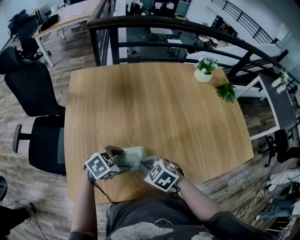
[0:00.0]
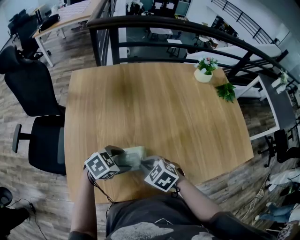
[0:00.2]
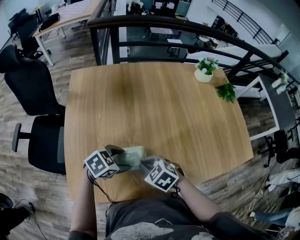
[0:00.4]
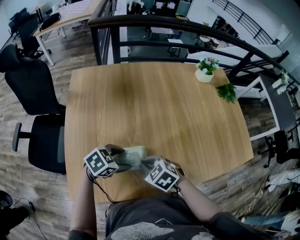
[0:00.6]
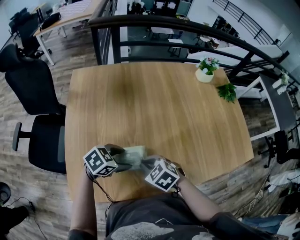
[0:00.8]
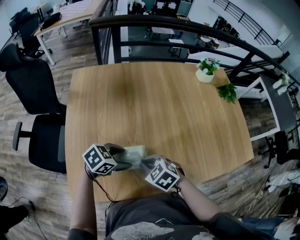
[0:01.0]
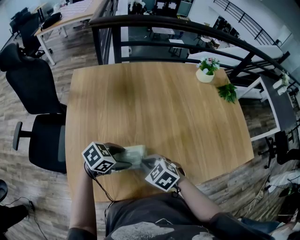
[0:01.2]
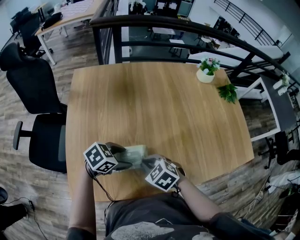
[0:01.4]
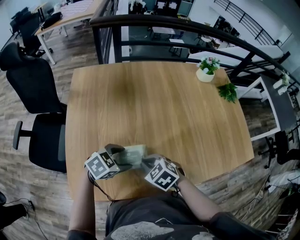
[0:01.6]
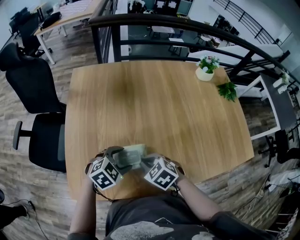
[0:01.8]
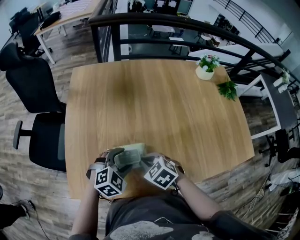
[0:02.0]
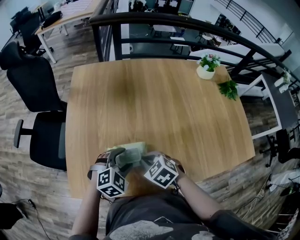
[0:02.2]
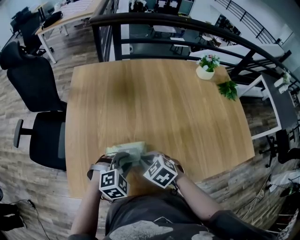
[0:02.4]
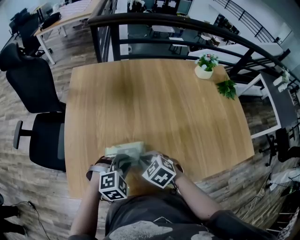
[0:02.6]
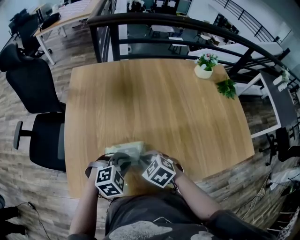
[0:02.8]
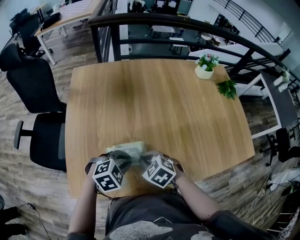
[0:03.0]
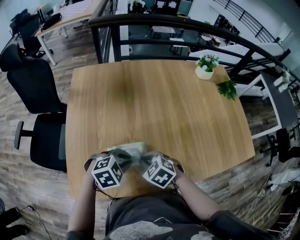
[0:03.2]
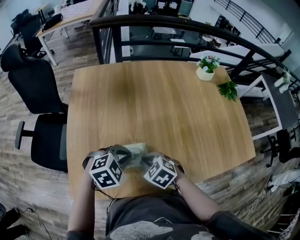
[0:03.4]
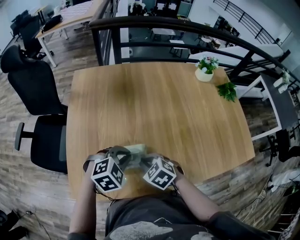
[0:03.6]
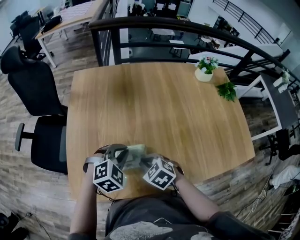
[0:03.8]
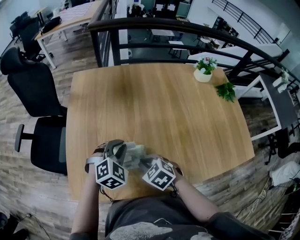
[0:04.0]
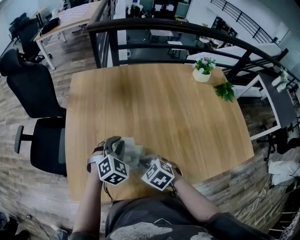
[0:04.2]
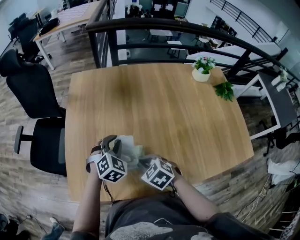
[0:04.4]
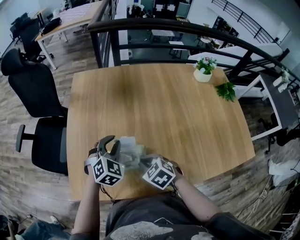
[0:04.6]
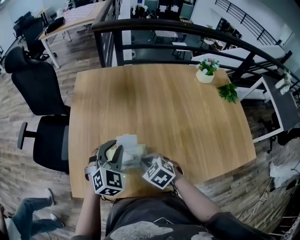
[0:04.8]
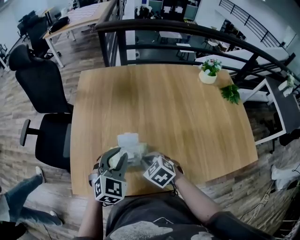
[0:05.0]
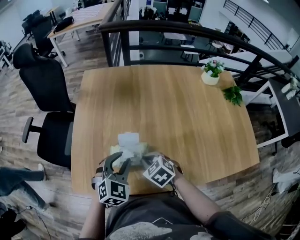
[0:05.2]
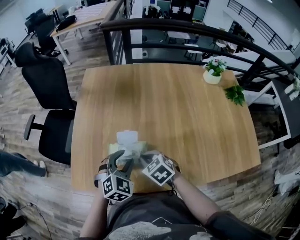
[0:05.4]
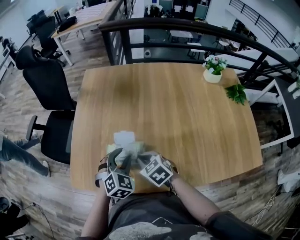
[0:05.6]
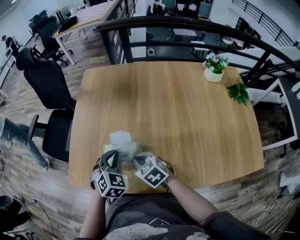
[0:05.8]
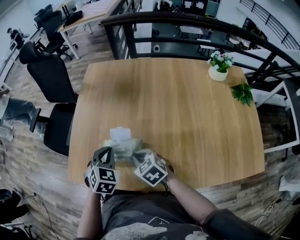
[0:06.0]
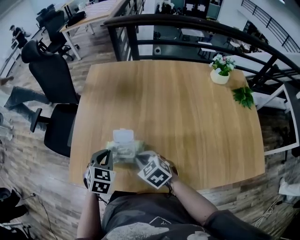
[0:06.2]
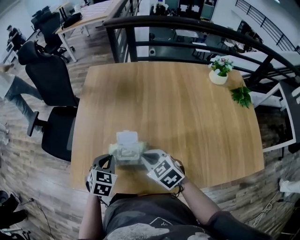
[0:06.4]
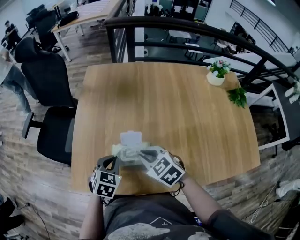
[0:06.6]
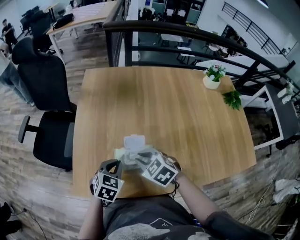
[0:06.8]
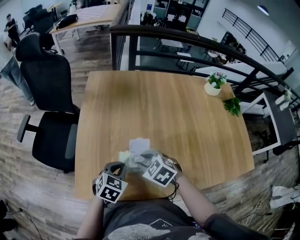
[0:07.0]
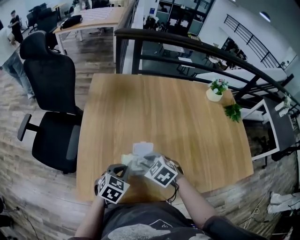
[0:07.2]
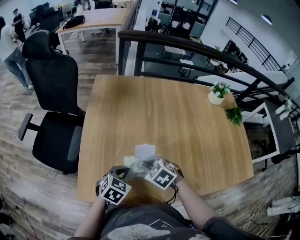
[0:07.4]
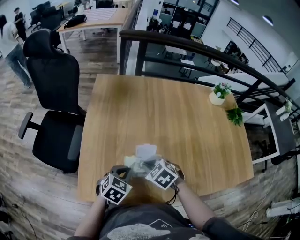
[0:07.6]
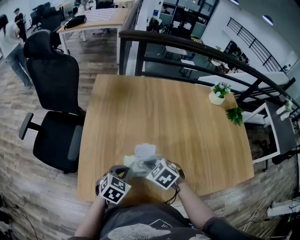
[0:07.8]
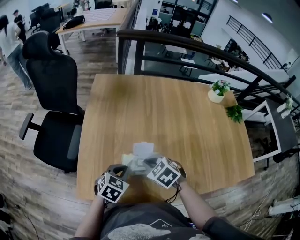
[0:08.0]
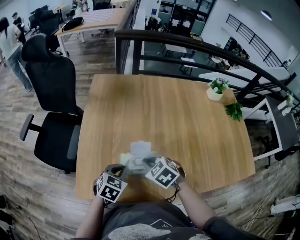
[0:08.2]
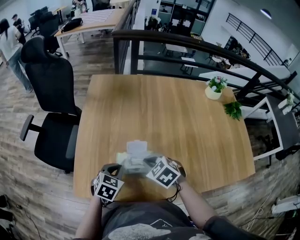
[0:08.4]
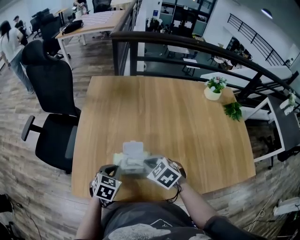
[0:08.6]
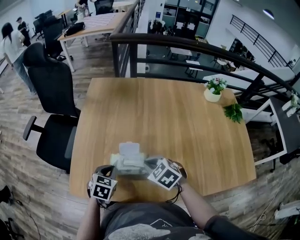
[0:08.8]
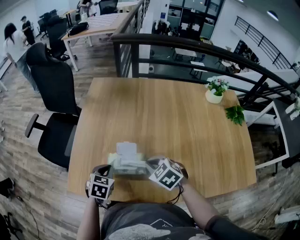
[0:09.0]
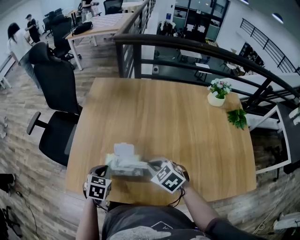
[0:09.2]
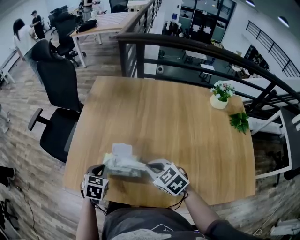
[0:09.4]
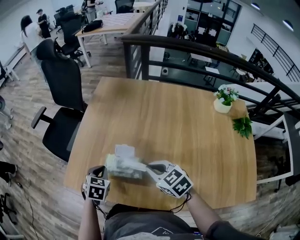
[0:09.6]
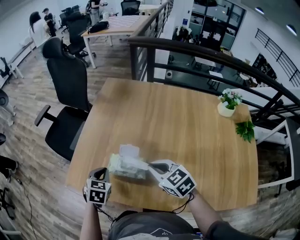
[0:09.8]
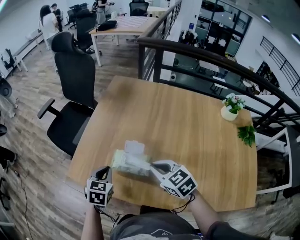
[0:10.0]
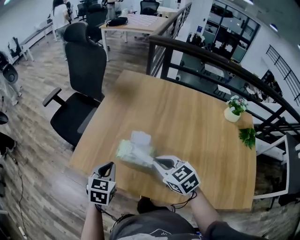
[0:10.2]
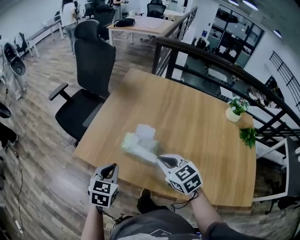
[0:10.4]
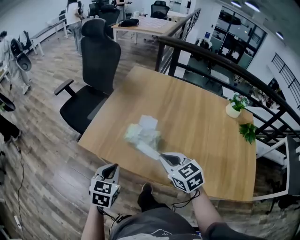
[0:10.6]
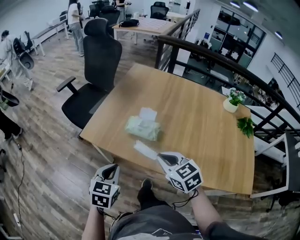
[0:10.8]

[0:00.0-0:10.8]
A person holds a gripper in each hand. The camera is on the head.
0:00.0 to 0:01.6: The grippers make only small movements.
0:01.6 to 0:03.0: The left gripper changes its angle by about 20 degrees, and closes.
0:03.0 to 0:04.6: The left gripper ends up some 10 cm from where it was, and changes its angle by roughly 40 degrees.
0:04.6 to 0:06.2: The left gripper heads backward and to the left, covering some 10 cm, and turns by some 30 degrees.
0:06.2 to 0:07.8: The left gripper changes its angle by approximately 30 degrees, while the right gripper moves to the left, approximately 5 cm, and opens, then closes again.
0:07.8 to 0:09.2: The right gripper is displaced to the right by some 10 cm; the left gripper swivels approximately 30 degrees.
0:09.2 to 0:10.8: The right gripper is displaced backward, upward and to the left by some 20 cm. The left gripper is displaced backward by approximately 25 cm, and swivels approximately 20 degrees.

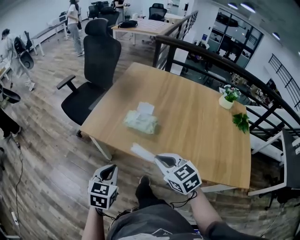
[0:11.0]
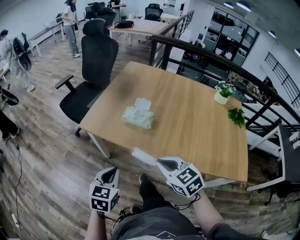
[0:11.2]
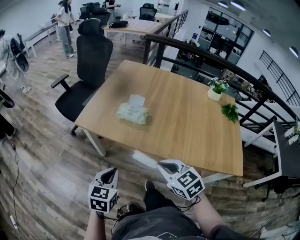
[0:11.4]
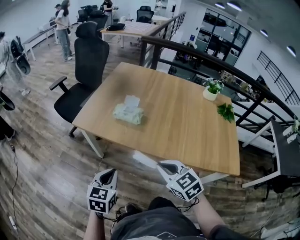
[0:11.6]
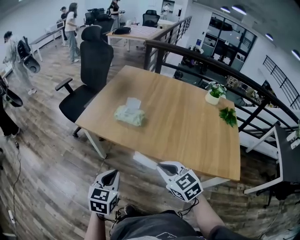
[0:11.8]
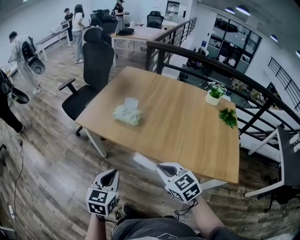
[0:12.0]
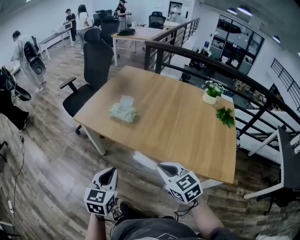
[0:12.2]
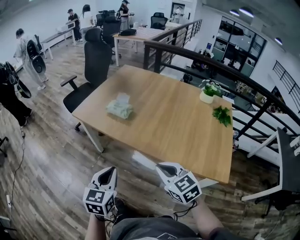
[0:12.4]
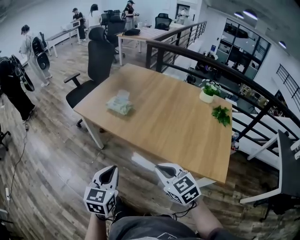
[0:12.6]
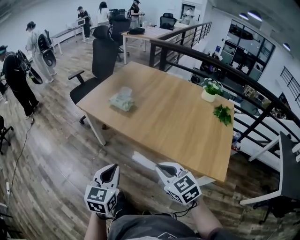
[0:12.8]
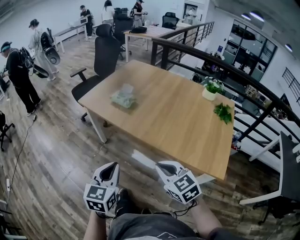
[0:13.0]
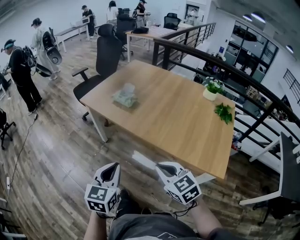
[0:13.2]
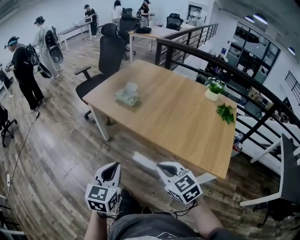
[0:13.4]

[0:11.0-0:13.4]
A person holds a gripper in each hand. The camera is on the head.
0:11.0 to 0:12.2: The two grippers go some 20 cm backward and to the right.
0:12.2 to 0:13.4: Both grippers move backward, about 15 cm.

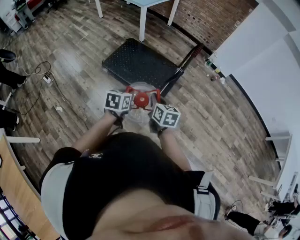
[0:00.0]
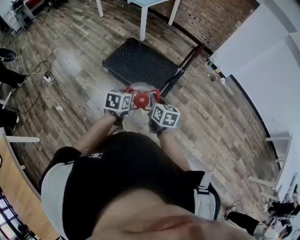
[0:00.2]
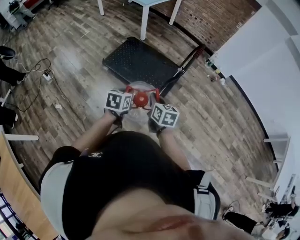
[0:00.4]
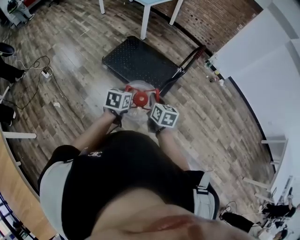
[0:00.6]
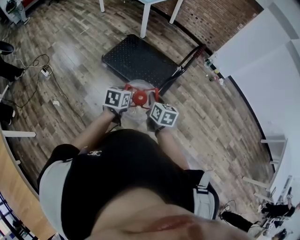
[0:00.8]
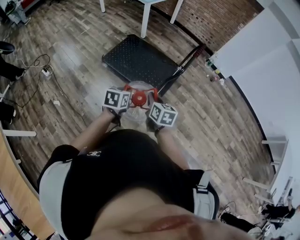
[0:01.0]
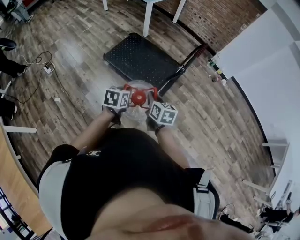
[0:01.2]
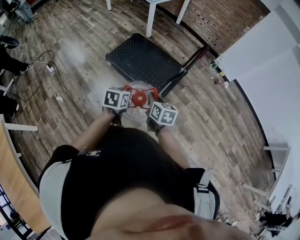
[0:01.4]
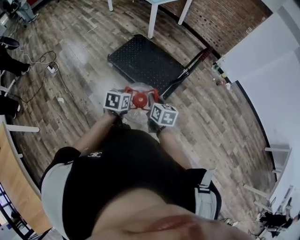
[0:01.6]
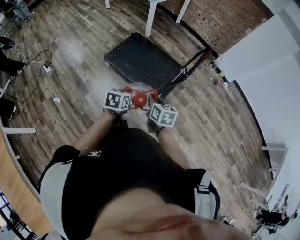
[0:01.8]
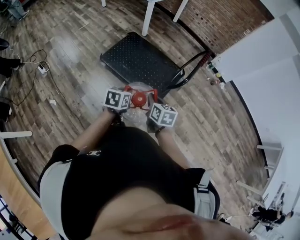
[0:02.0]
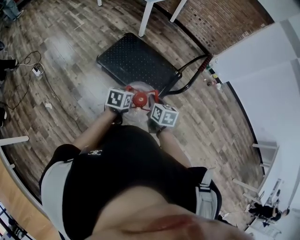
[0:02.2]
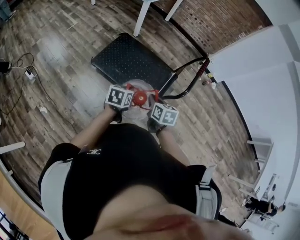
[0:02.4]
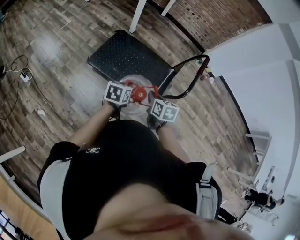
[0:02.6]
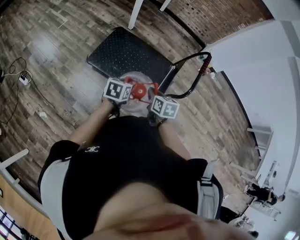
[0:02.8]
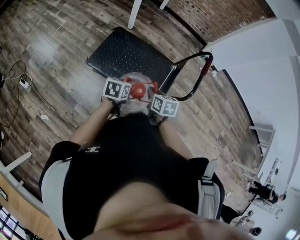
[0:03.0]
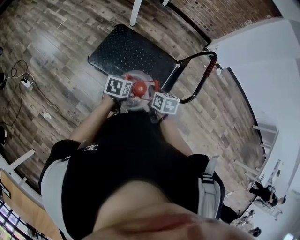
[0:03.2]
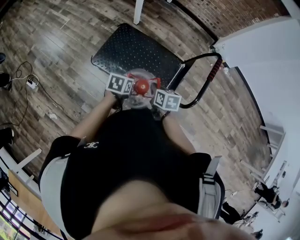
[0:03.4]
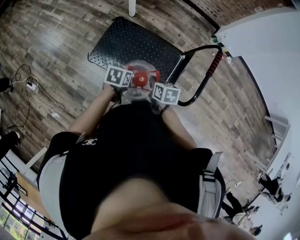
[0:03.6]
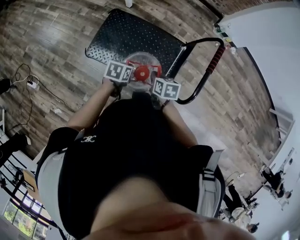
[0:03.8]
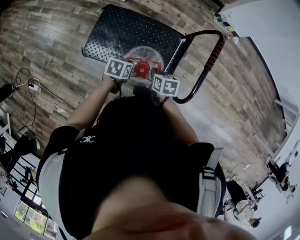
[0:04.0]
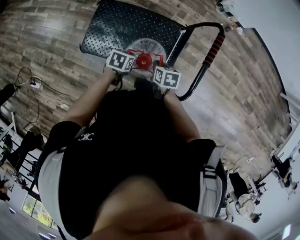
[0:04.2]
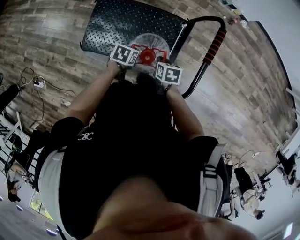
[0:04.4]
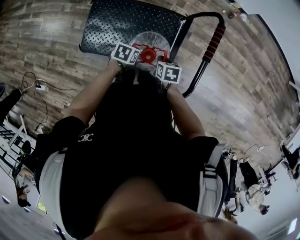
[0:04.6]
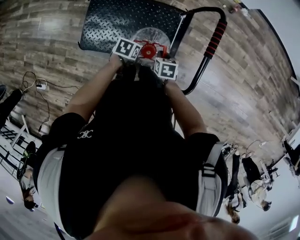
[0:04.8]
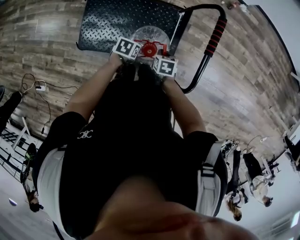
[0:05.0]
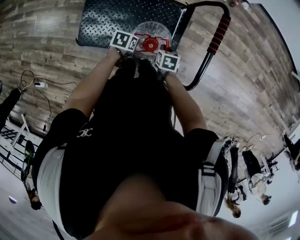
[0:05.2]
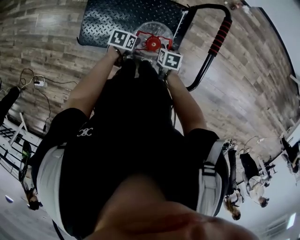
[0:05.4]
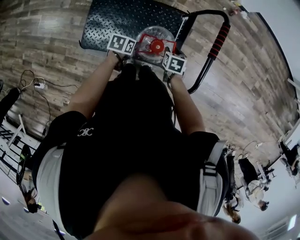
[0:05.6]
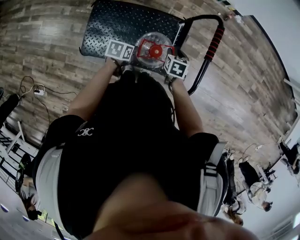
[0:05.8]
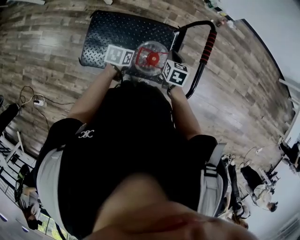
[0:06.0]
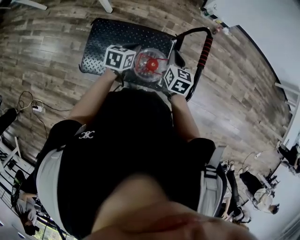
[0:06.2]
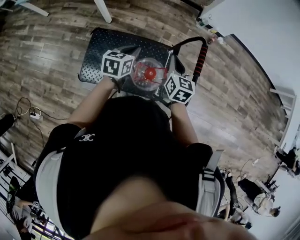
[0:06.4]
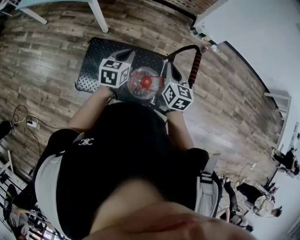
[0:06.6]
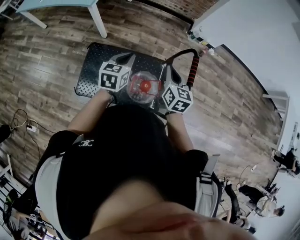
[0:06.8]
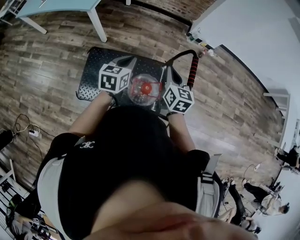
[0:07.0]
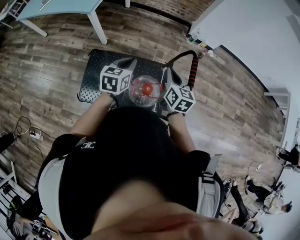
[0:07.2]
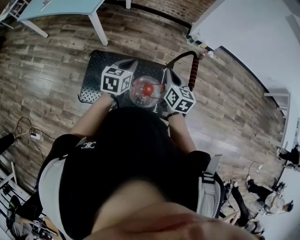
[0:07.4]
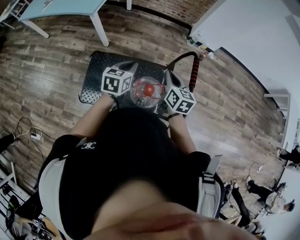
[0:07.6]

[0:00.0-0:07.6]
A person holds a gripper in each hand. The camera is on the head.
0:00.0 to 0:01.6: The grippers move only a little.
0:01.6 to 0:03.0: The two grippers go some 20 cm forward.
0:03.0 to 0:04.6: The left gripper goes approximately 25 cm forward, downward and to the right, and rotates about 30 degrees. The right gripper shifts approximately 25 cm downward, forward and to the right, and swivels about 20 degrees.
0:04.6 to 0:06.0: The left gripper moves upward and forward, some 10 cm, and opens, then closes once more; the right gripper goes about 15 cm forward and upward, rotates about 20 degrees, and opens and closes again.
0:06.0 to 0:07.6: Both grippers move upward, about 20 cm. The left gripper rotates about 30 degrees, while the right gripper turns by about 30 degrees.

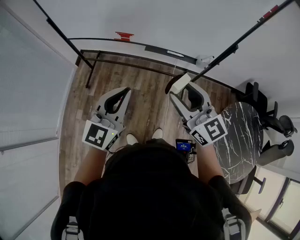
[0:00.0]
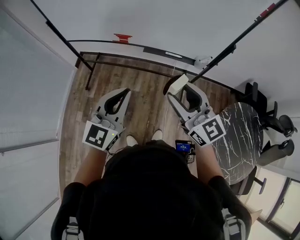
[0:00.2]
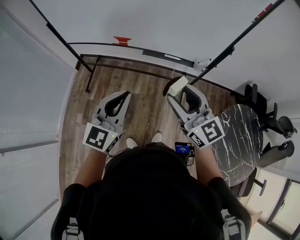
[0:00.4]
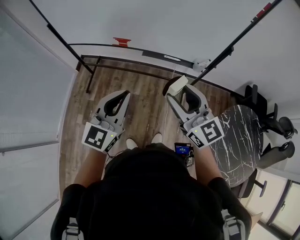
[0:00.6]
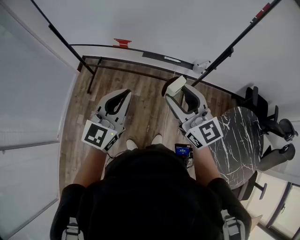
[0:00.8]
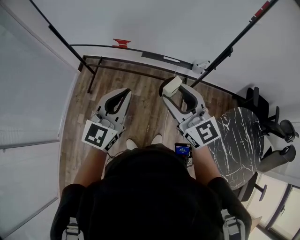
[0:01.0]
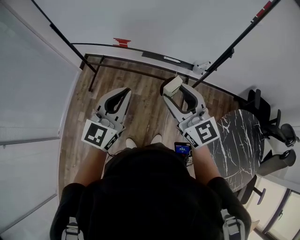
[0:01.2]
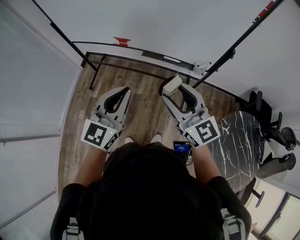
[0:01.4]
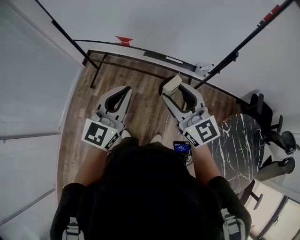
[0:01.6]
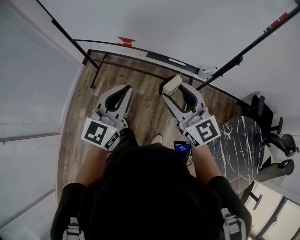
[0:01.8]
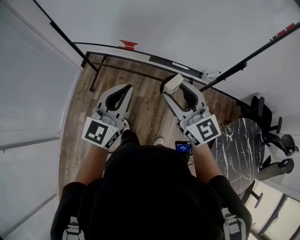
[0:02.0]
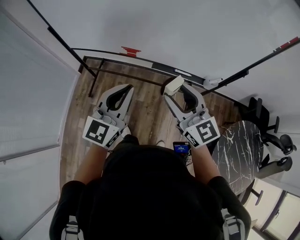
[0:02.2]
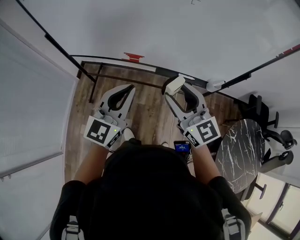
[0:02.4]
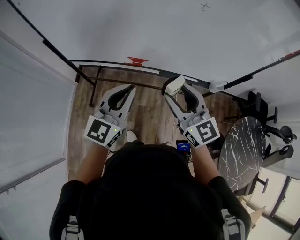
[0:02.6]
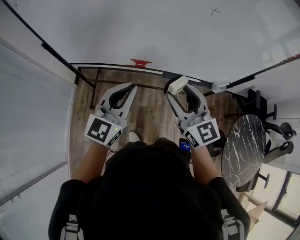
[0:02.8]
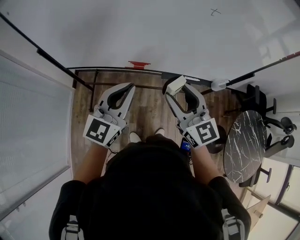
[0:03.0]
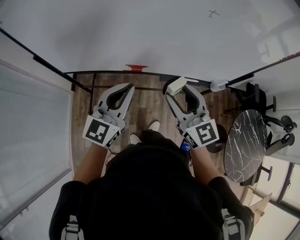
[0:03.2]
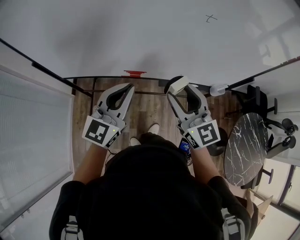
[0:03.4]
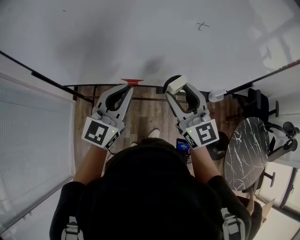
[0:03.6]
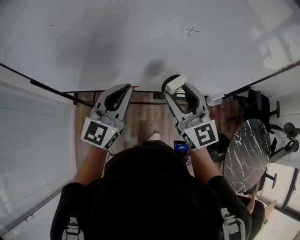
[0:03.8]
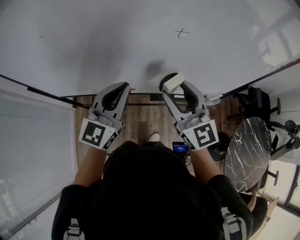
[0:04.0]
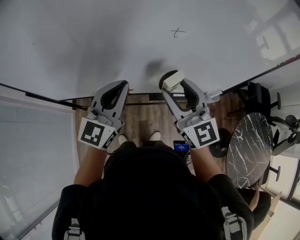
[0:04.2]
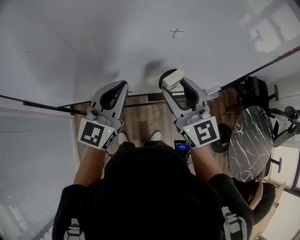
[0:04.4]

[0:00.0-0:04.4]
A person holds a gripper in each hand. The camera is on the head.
0:00.0 to 0:01.4: The grippers both shift to the right by about 5 cm.
0:01.4 to 0:03.0: The left gripper is displaced forward and to the left by roughly 30 cm. Meanwhile the right gripper heads to the left and forward, covering approximately 30 cm.
0:03.0 to 0:04.4: Both grippers travel together forward and to the right, approximately 20 cm.
